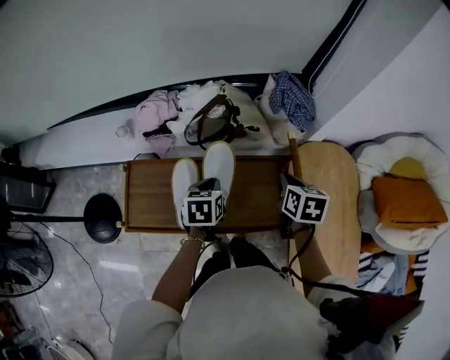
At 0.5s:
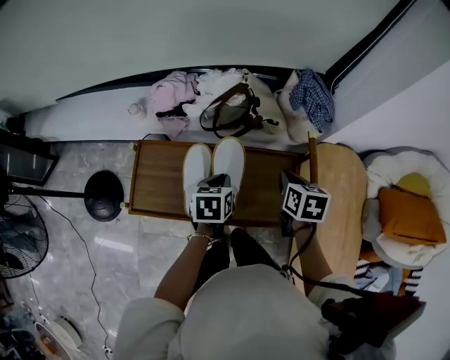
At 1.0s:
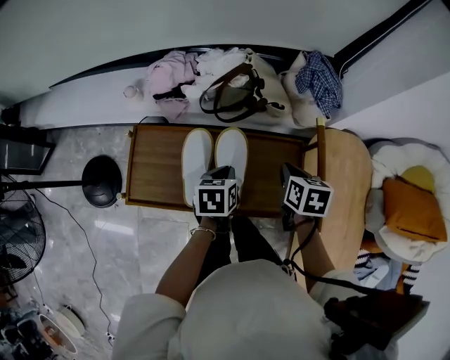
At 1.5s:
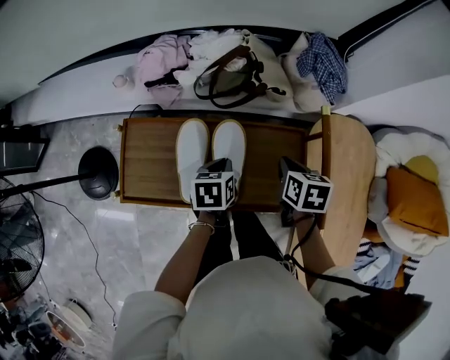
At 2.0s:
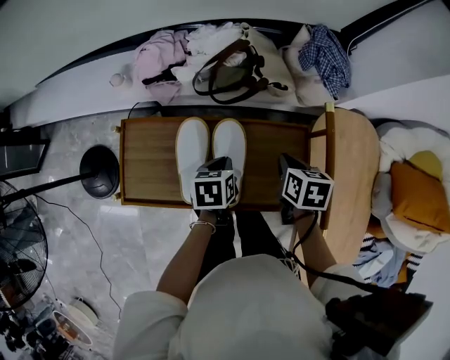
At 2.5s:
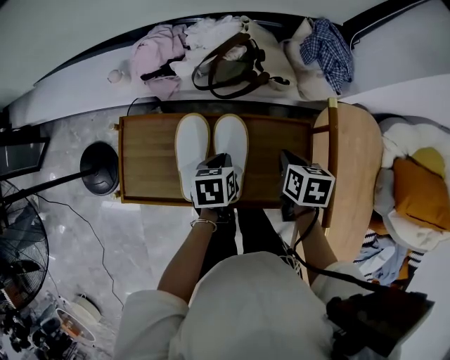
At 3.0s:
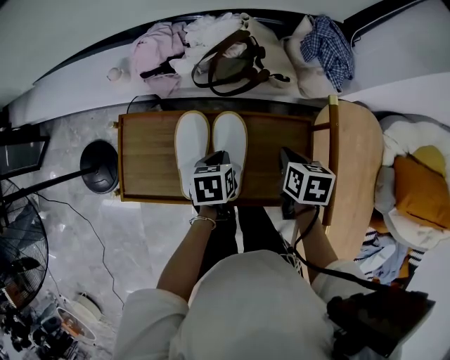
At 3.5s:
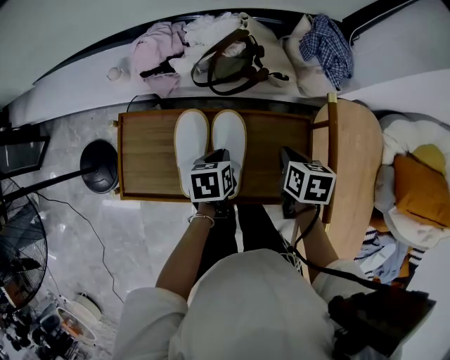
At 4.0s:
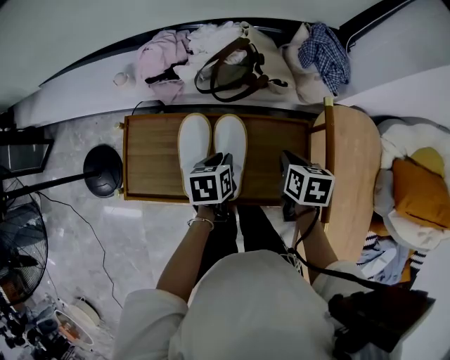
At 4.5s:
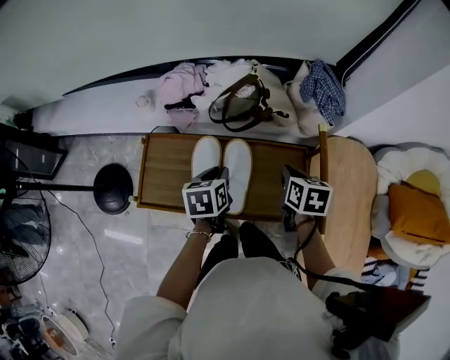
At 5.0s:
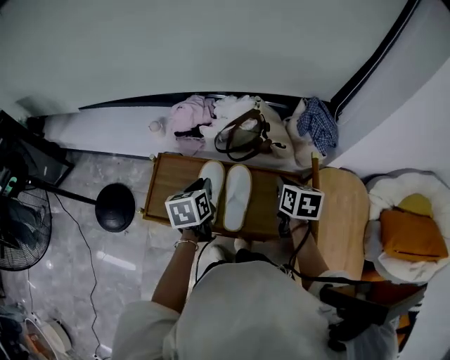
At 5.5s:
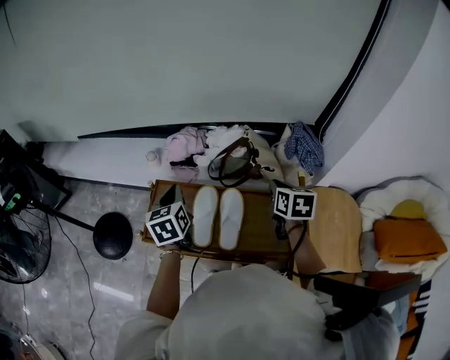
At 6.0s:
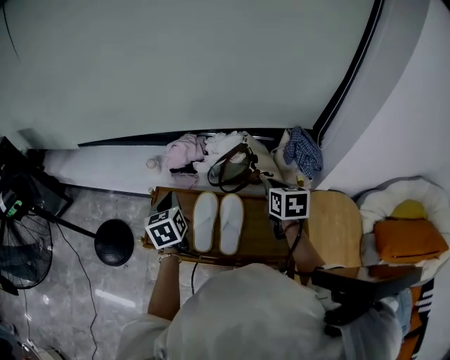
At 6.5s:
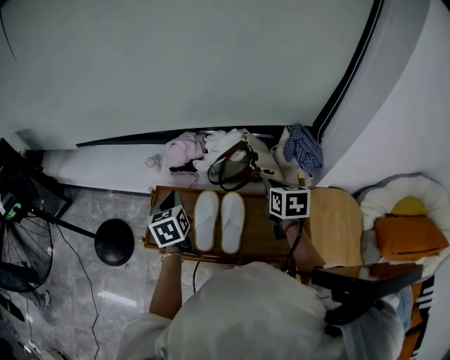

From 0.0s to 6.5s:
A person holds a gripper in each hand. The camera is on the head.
From 0.0s to 2.0s: The right gripper shifts approximately 10 cm downward and to the left, while the left gripper shifts some 10 cm downward.
From 2.0s to 4.5s: The grippers both shift upward by approximately 5 cm.
From 4.5s to 6.5s: The left gripper is displaced to the left and upward by roughly 20 cm, and turns by approximately 30 degrees, while the right gripper shifts about 15 cm upward and forward.

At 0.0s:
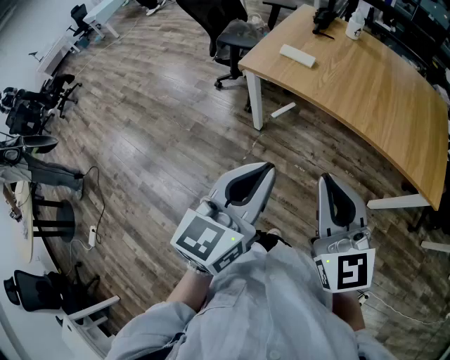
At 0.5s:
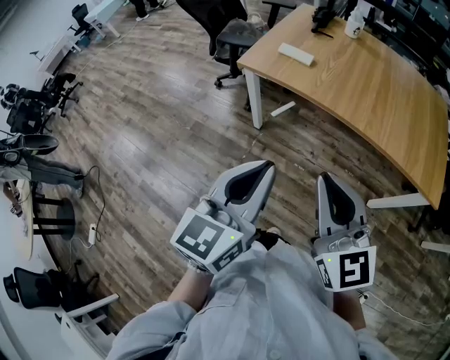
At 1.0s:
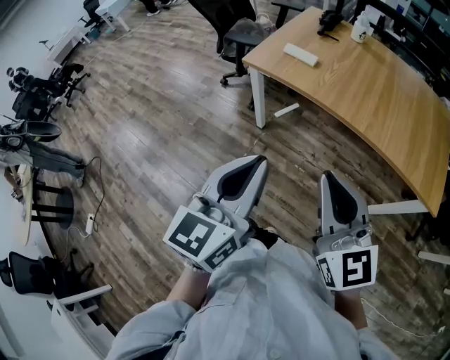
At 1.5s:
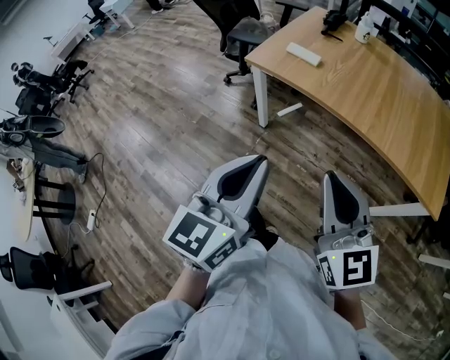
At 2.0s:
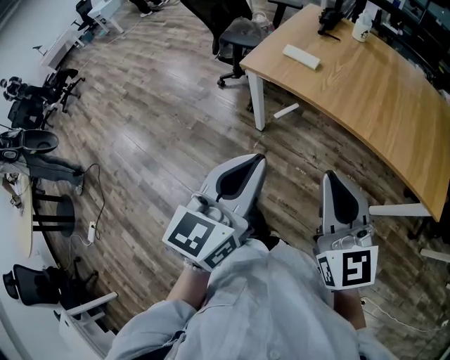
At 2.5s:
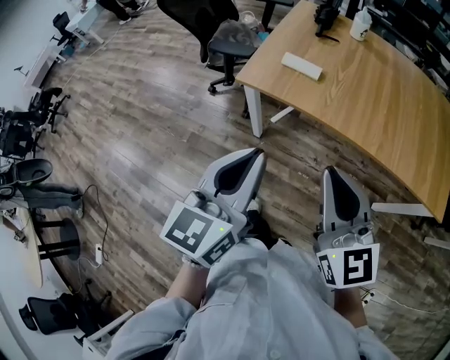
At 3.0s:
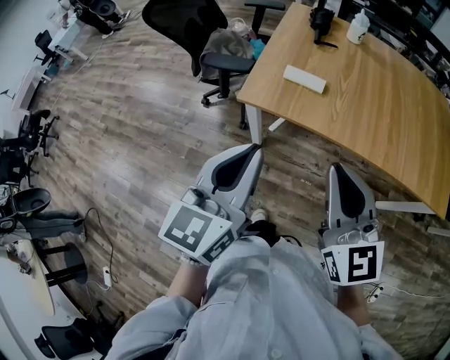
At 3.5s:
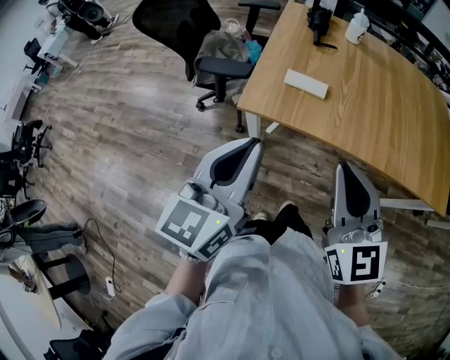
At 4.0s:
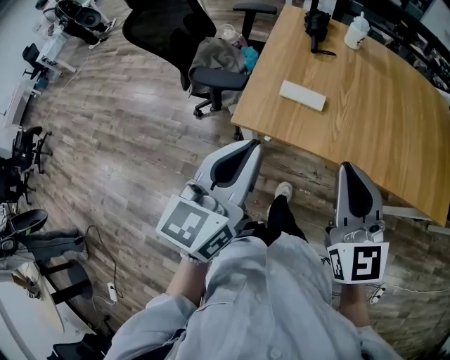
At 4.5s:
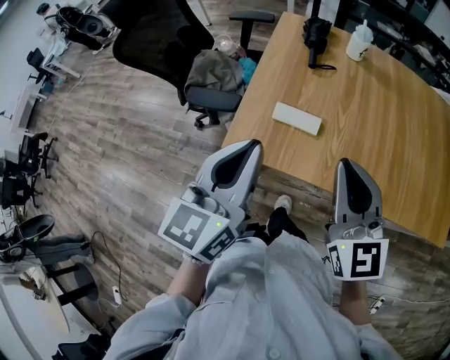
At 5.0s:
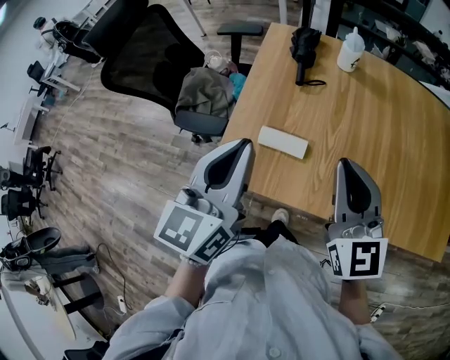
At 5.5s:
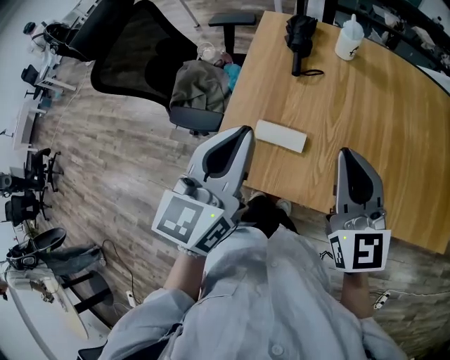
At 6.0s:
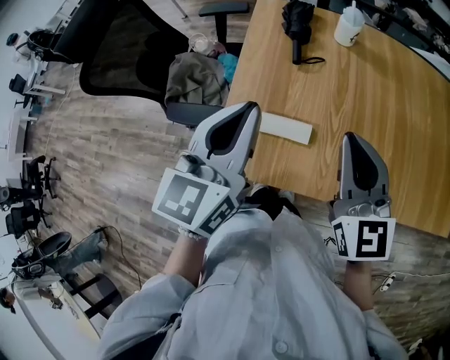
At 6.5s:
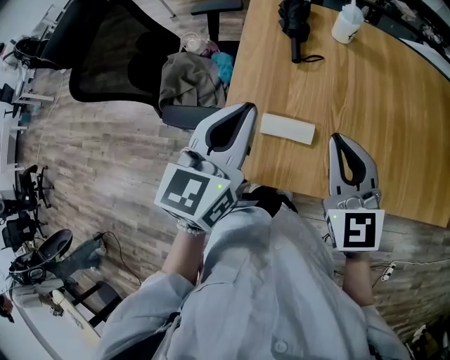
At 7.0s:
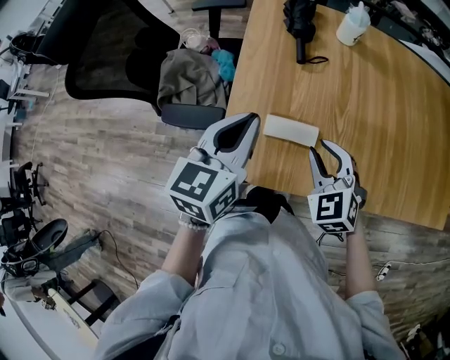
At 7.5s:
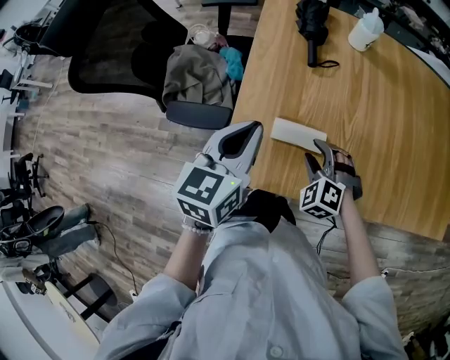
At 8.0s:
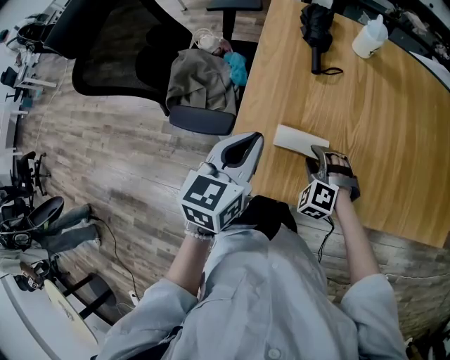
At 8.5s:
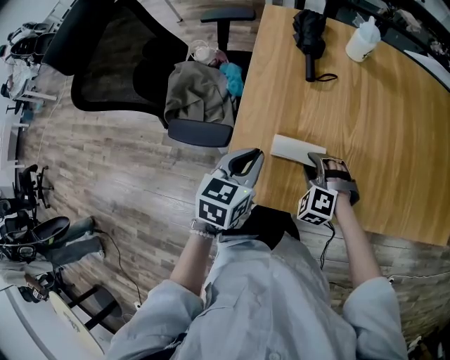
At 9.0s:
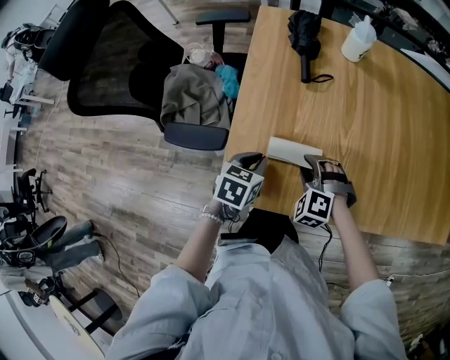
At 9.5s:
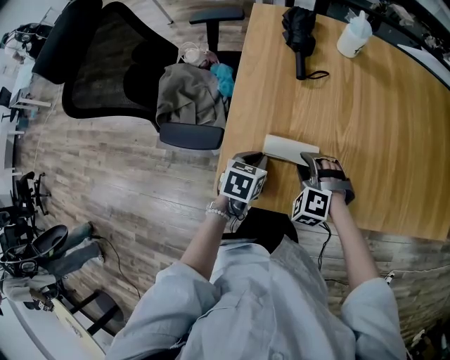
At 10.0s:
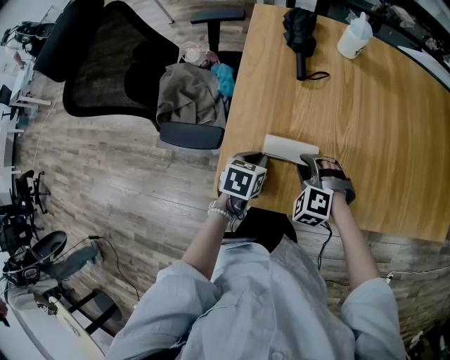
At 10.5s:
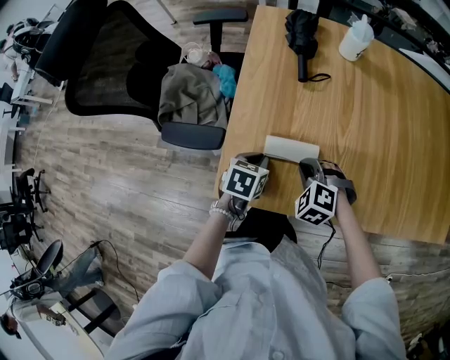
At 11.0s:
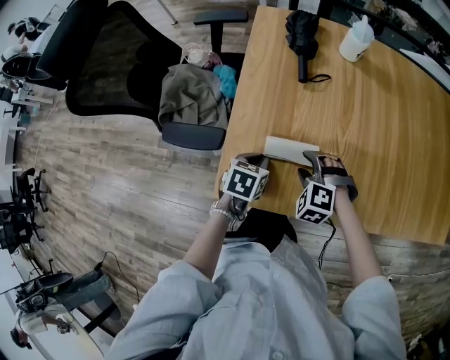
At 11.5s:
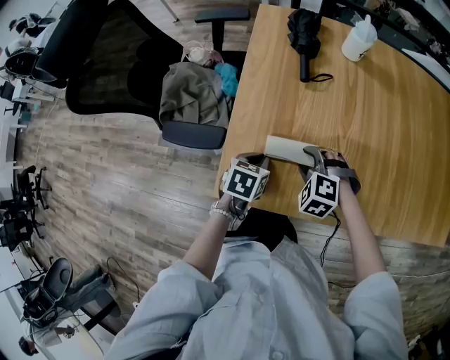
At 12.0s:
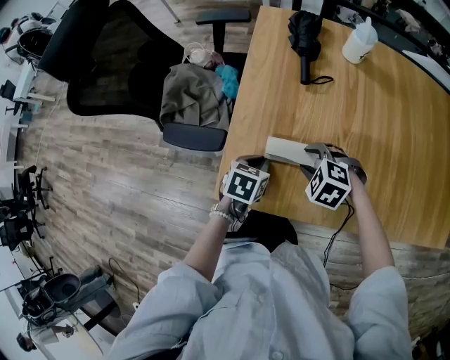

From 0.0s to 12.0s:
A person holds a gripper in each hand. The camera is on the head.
From 0.0s to 2.0s: The grippers stay close to where they were, moving slightly.
From 2.0s to 4.0s: The grippers both shift forward and to the left by some 30 cm.
From 4.0s to 6.0s: The two grippers go roughly 25 cm forward.
From 6.0s to 8.0s: The right gripper is displaced downward by approximately 30 cm, tips its fingers downward by approximately 50 degrees, and opens its fingers. Meanwhile the left gripper moves downward and to the left, some 15 cm.
From 8.0s to 10.0s: The left gripper shifts about 20 cm downward, and swivels about 30 degrees.
From 10.0s to 12.0s: The right gripper swivels roughly 20 degrees, and closes, then reopens.

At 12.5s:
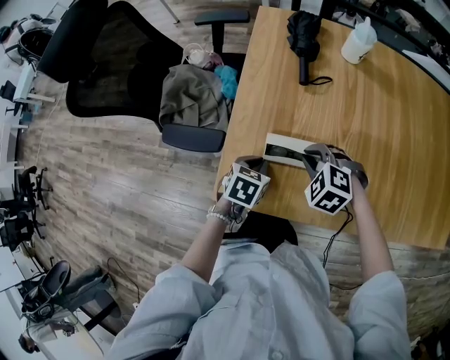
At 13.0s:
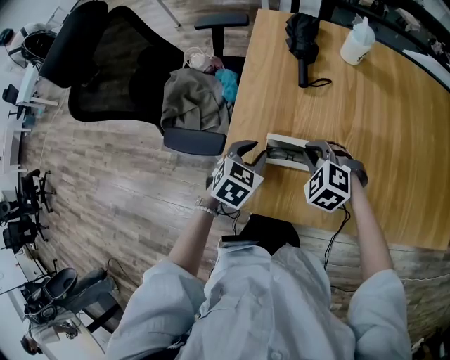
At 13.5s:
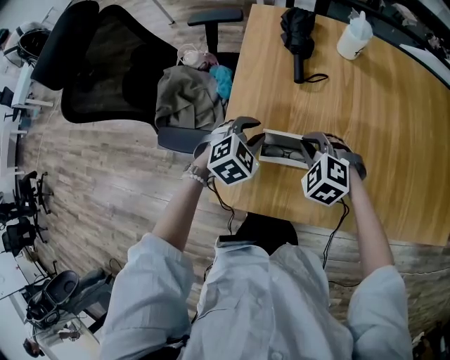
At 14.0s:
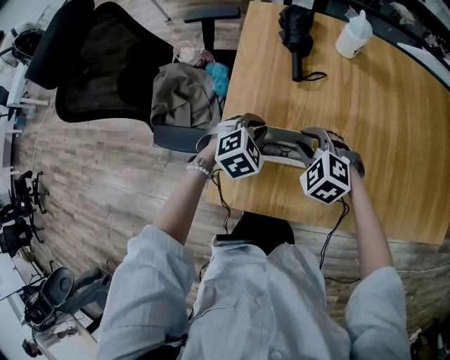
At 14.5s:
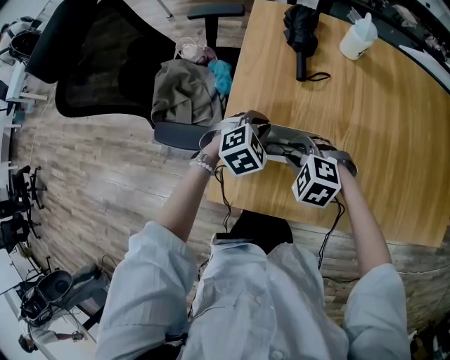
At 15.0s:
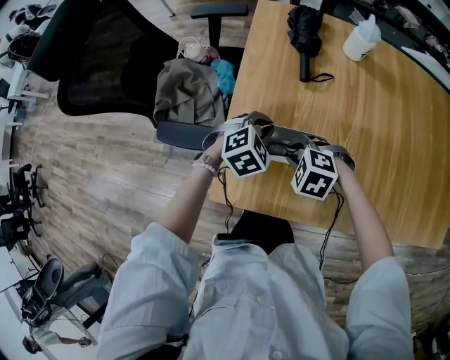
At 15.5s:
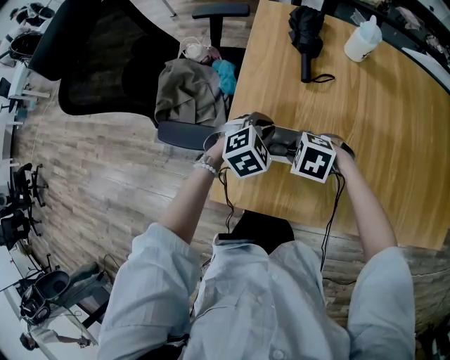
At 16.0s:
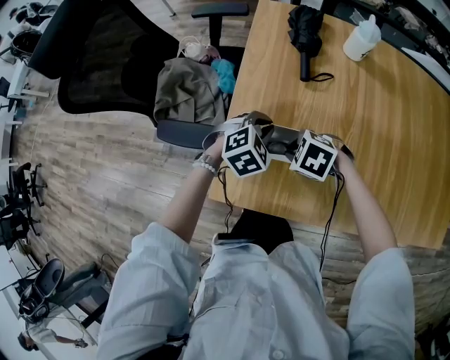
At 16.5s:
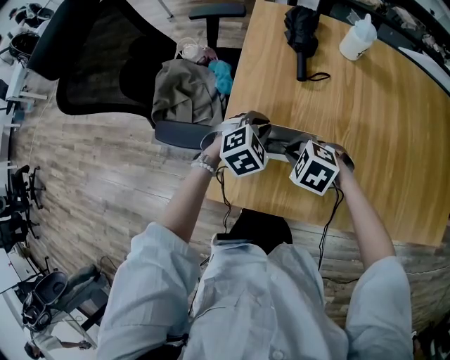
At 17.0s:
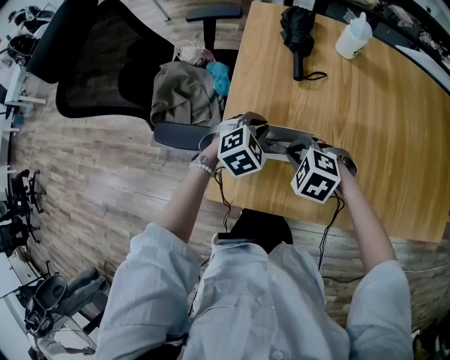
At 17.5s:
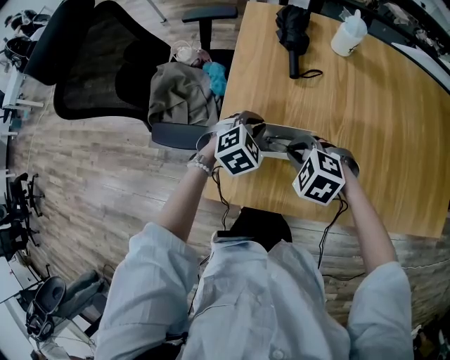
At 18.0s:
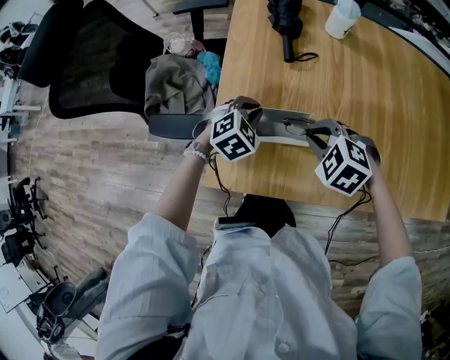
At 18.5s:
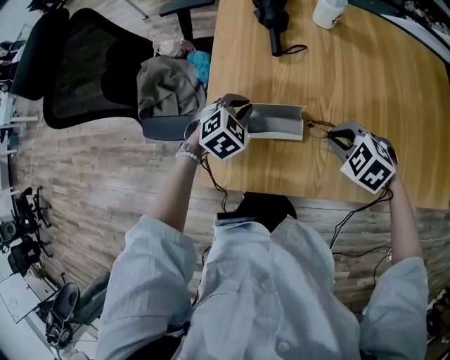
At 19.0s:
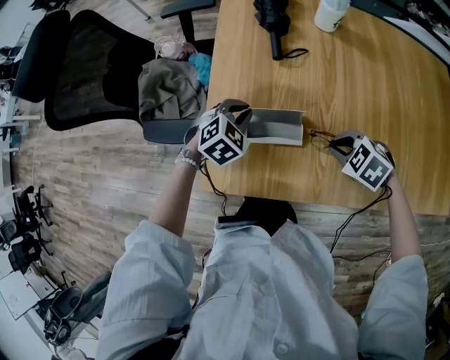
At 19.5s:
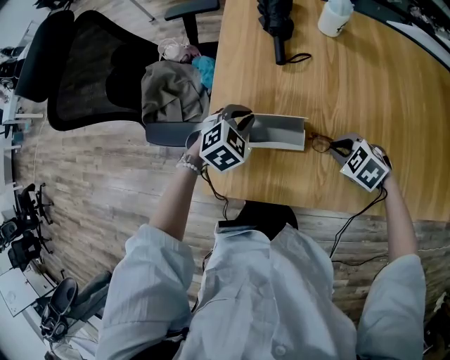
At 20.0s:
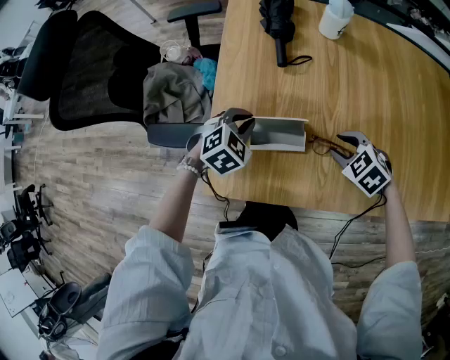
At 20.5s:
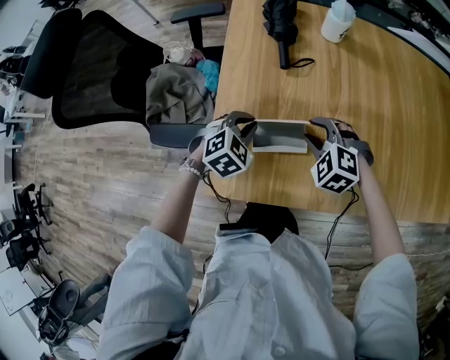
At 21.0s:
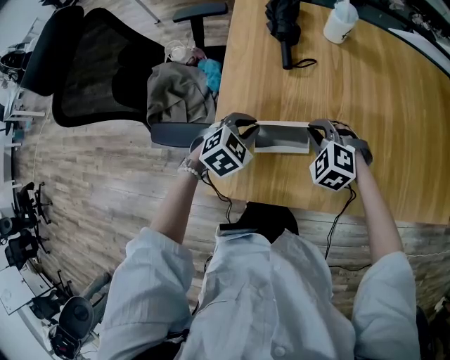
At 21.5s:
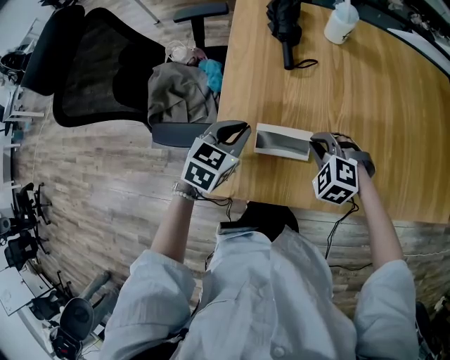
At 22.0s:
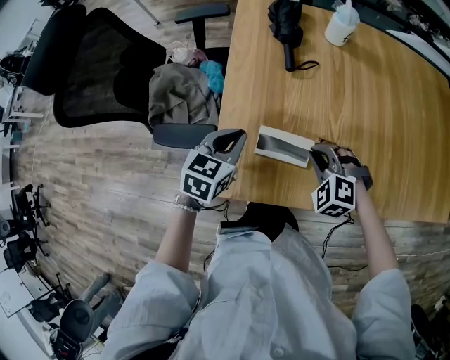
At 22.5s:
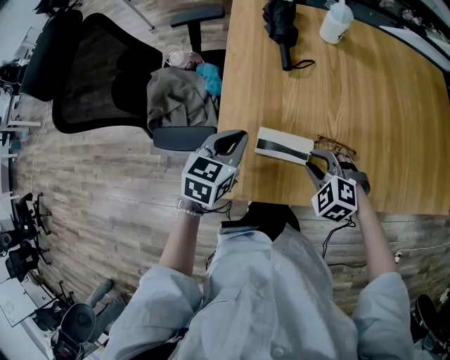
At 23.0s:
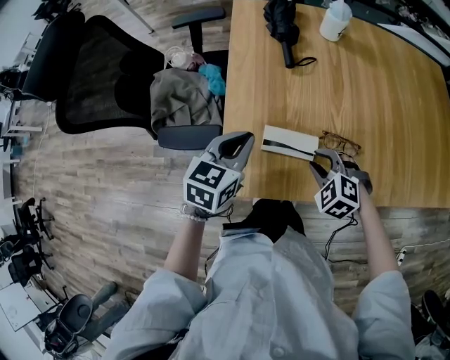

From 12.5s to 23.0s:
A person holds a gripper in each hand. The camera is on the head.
From 12.5s to 14.5s: The left gripper goes roughly 10 cm forward, and rolls clockwise, seen from behind, by some 50 degrees.
From 16.5s to 19.0s: The right gripper goes roughly 15 cm to the right.
From 19.0s to 21.0s: The right gripper moves roughly 10 cm, rotates approximately 30 degrees, and opens and closes again.
From 21.0s to 23.0s: The right gripper travels backward by roughly 10 cm, and opens its fingers; the left gripper travels upward by roughly 10 cm, and rotates some 40 degrees.
